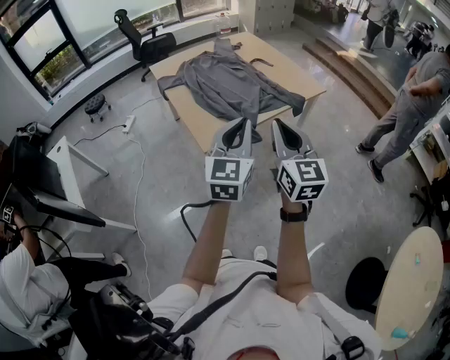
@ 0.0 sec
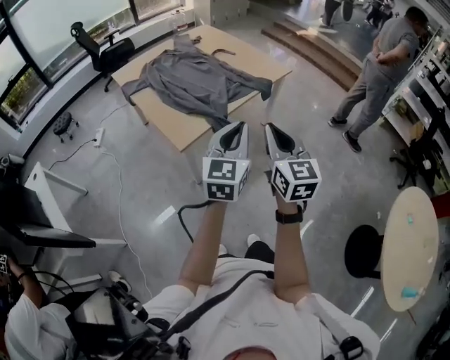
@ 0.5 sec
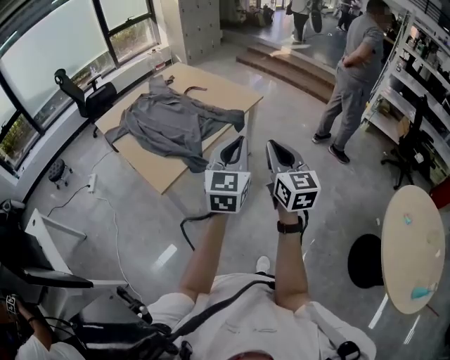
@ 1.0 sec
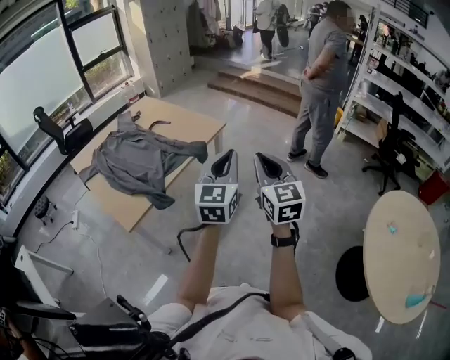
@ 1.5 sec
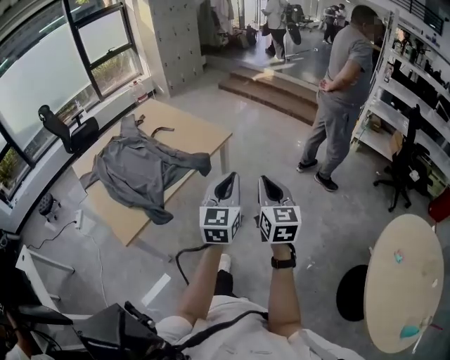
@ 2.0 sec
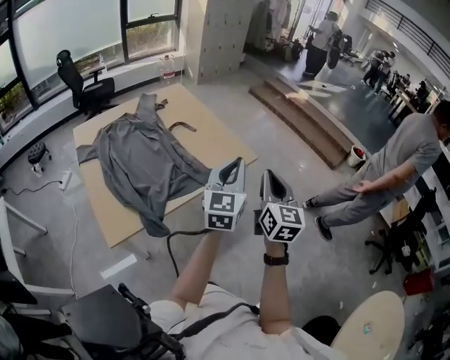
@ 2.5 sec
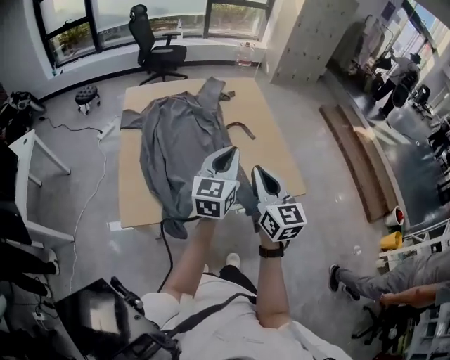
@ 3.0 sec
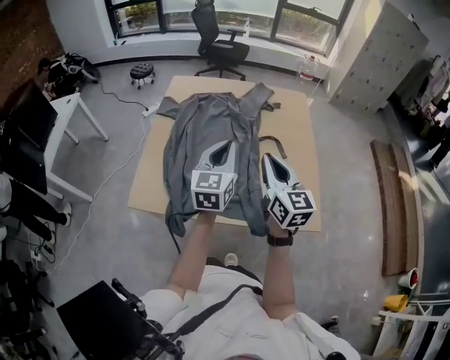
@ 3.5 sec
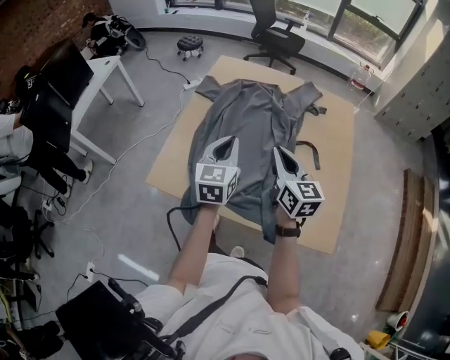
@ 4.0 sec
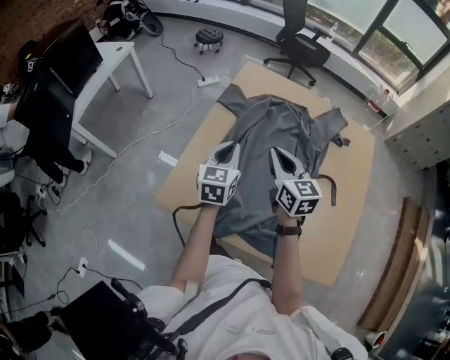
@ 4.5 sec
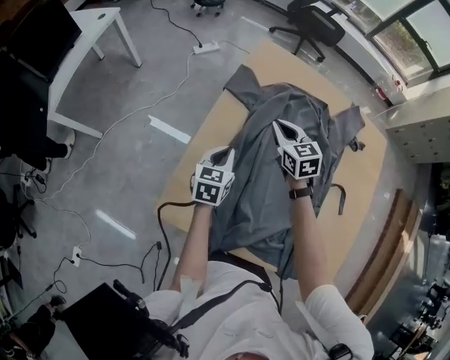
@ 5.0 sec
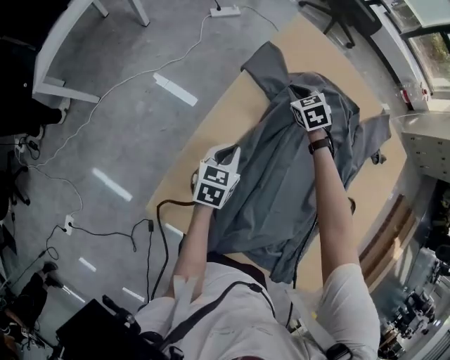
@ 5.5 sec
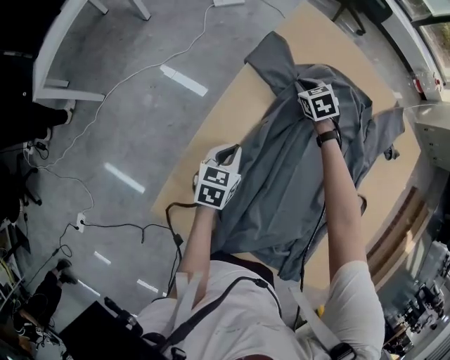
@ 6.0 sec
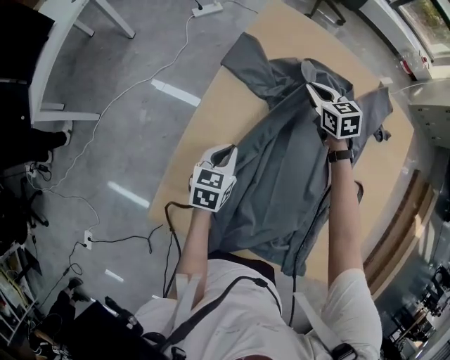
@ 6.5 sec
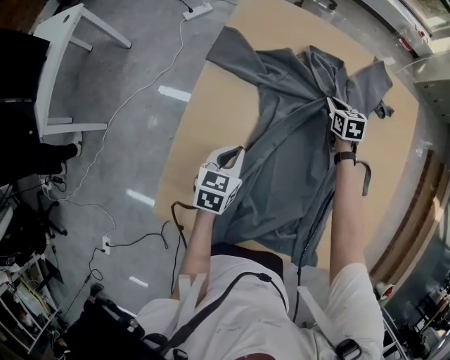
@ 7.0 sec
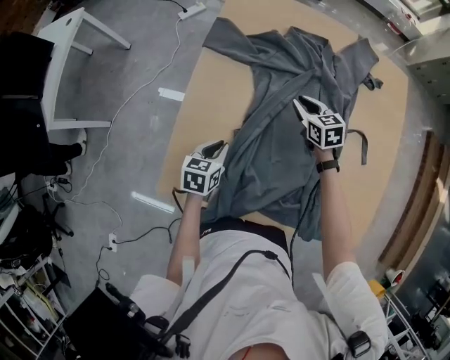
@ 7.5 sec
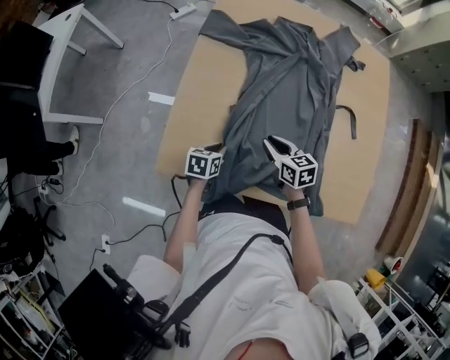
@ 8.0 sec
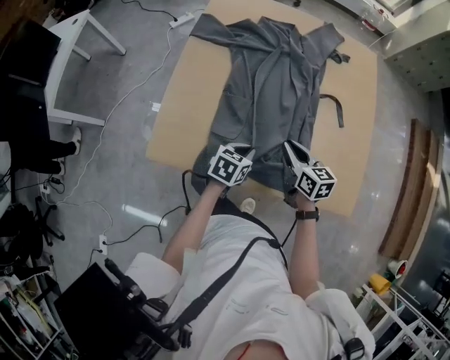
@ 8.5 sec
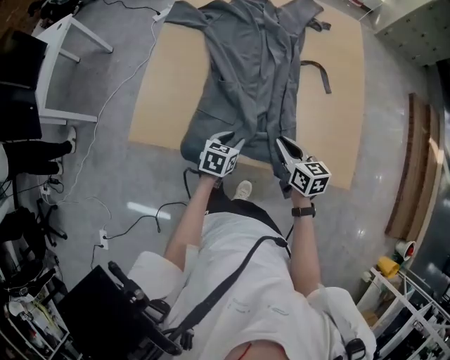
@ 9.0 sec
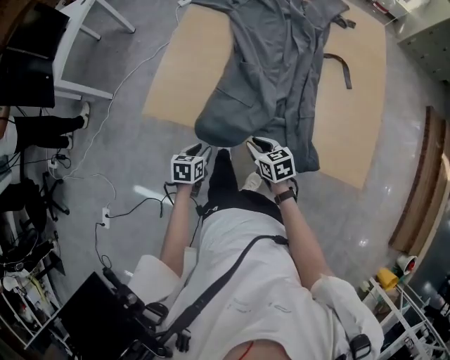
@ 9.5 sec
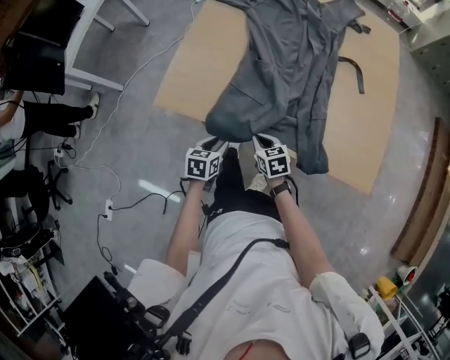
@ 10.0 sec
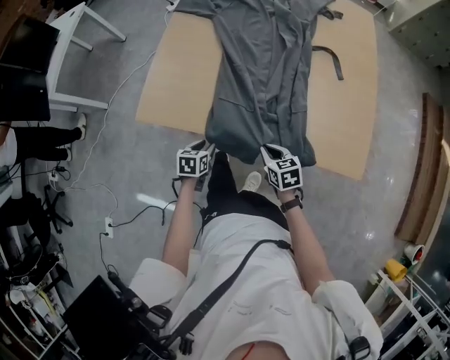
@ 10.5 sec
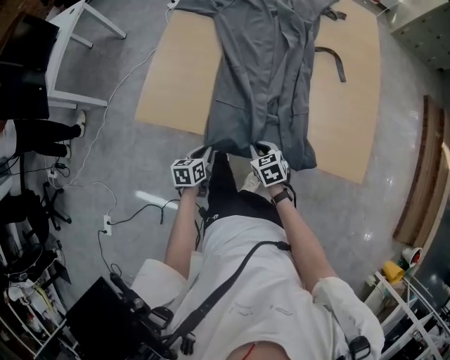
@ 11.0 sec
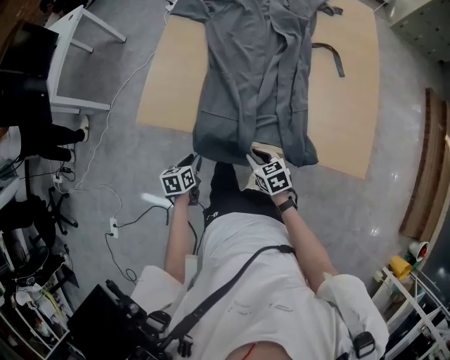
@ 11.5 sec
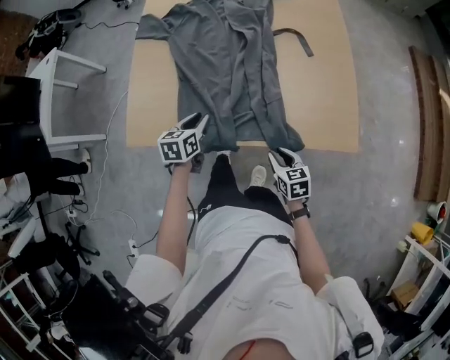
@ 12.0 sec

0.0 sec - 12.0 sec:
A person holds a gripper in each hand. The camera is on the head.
0.0 sec - 2.0 sec: The pair of grippers is taken to the right and forward, about 40 cm. The right gripper changes its angle by roughly 30 degrees.
2.0 sec - 4.0 sec: The pair of grippers is taken approximately 60 cm. The right gripper turns by some 80 degrees. Meanwhile the left gripper changes its angle by about 70 degrees.
4.0 sec - 6.0 sec: The right gripper travels forward and downward by some 60 cm, and tips its fingers downward by roughly 50 degrees; the left gripper goes about 40 cm downward, forward and to the left, and swivels some 40 degrees.
6.0 sec - 8.0 sec: The left gripper travels backward by approximately 20 cm; the right gripper shifts about 40 cm backward, and turns by approximately 50 degrees.
8.0 sec - 10.0 sec: The right gripper shifts by some 20 cm; the left gripper goes upward and returns, about 10 cm each way.
10.0 sec - 12.0 sec: The left gripper goes roughly 15 cm forward, to the right and upward, and closes, then opens again. The right gripper swings left and right, some 15 cm each way, with 2 reversals, and swivels some 20 degrees.

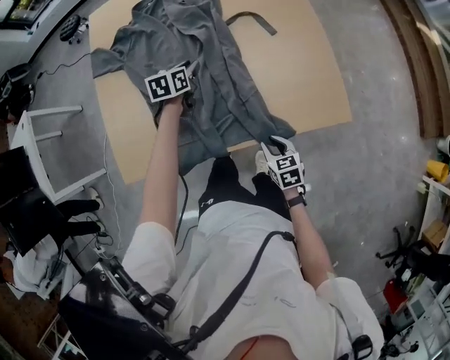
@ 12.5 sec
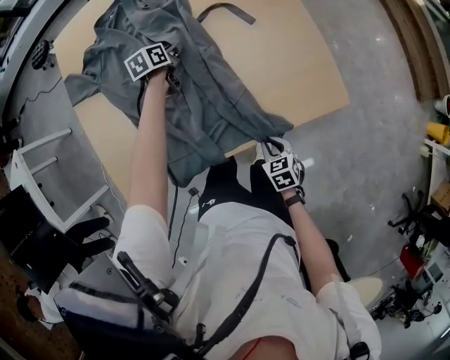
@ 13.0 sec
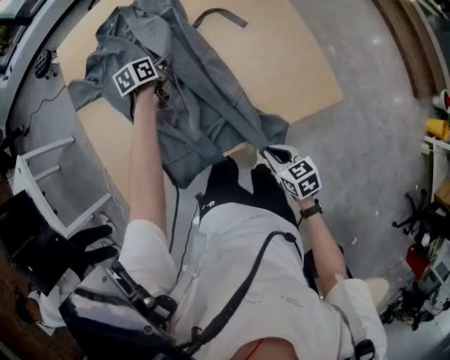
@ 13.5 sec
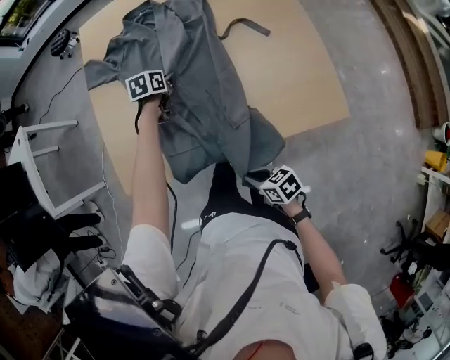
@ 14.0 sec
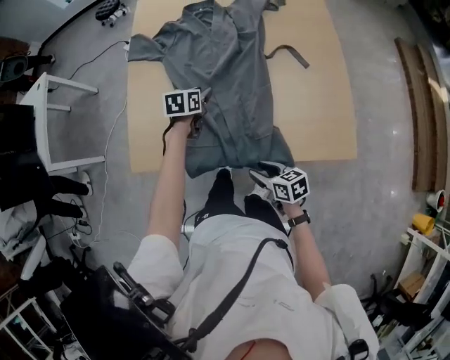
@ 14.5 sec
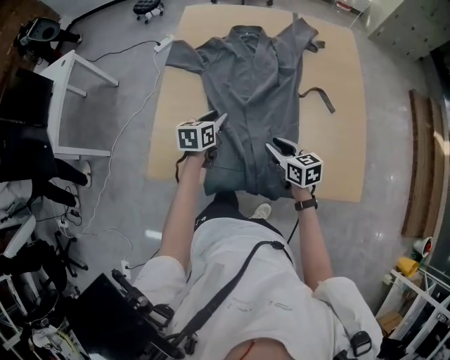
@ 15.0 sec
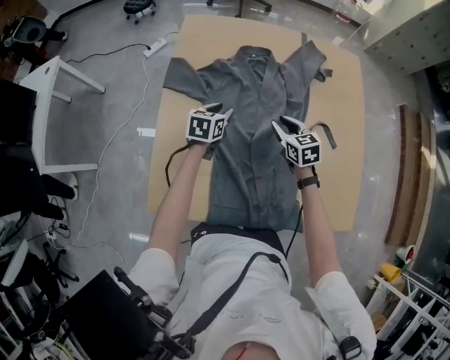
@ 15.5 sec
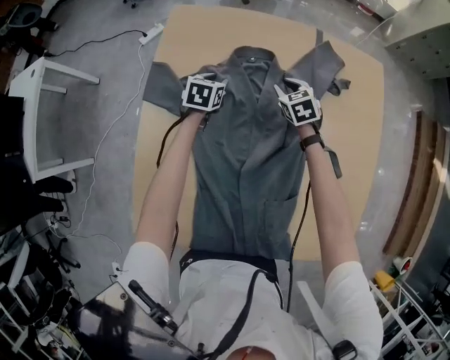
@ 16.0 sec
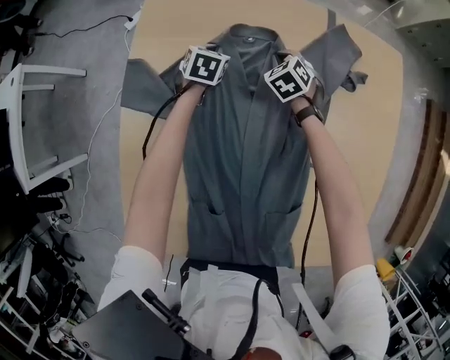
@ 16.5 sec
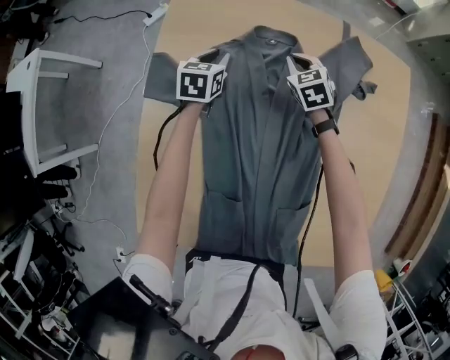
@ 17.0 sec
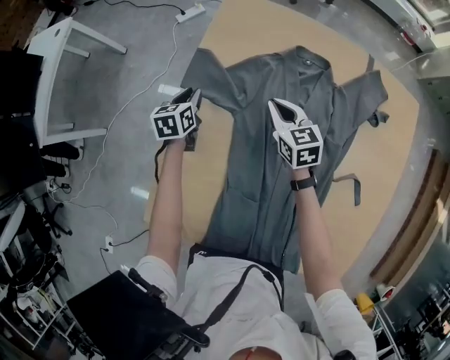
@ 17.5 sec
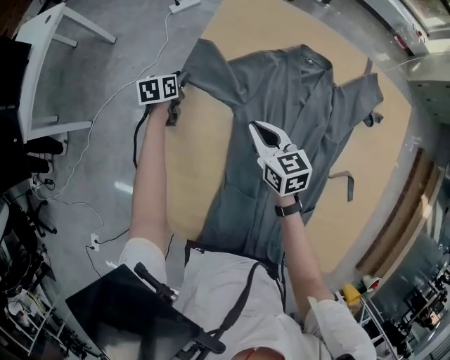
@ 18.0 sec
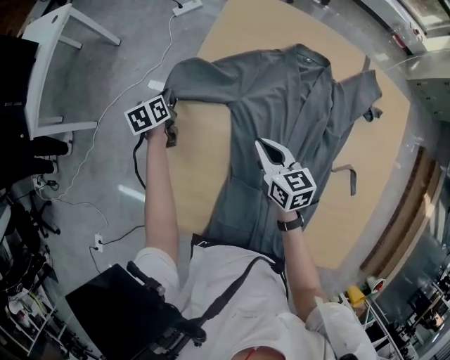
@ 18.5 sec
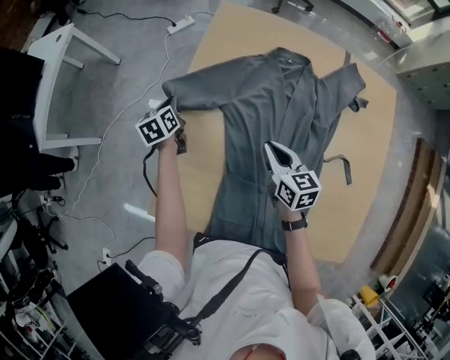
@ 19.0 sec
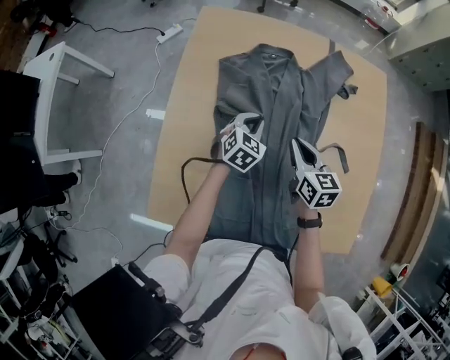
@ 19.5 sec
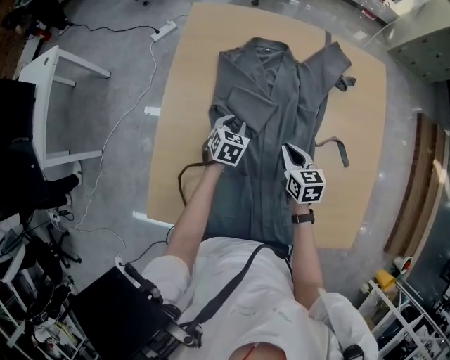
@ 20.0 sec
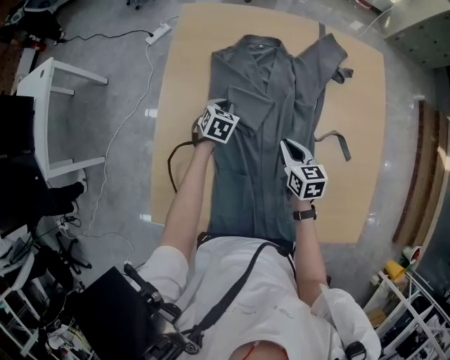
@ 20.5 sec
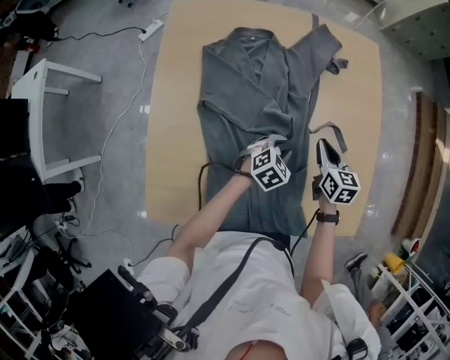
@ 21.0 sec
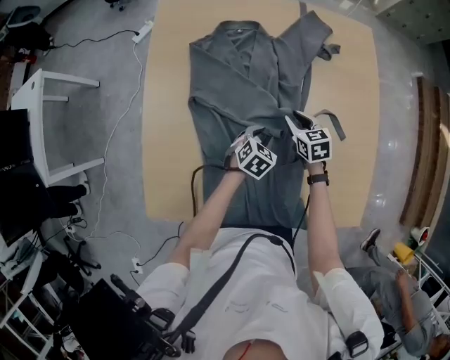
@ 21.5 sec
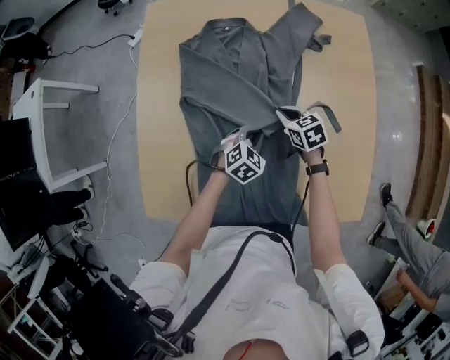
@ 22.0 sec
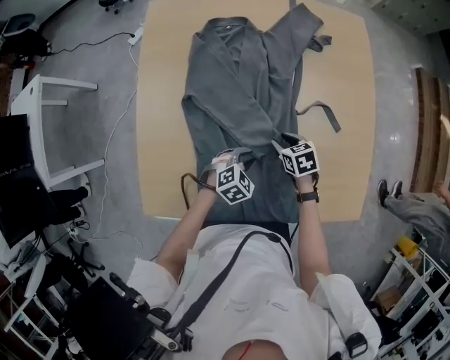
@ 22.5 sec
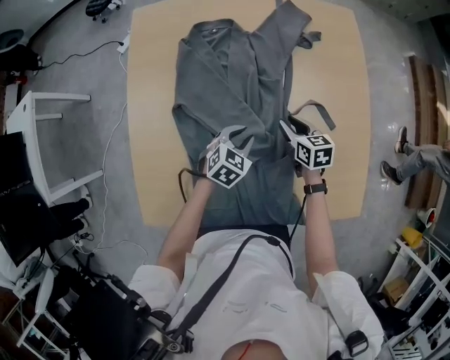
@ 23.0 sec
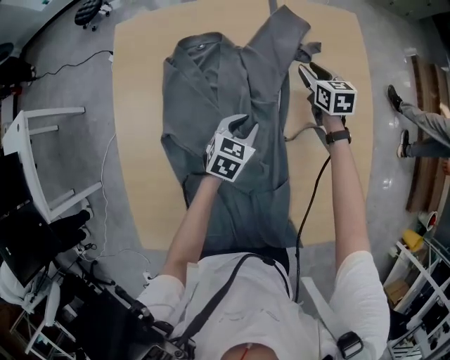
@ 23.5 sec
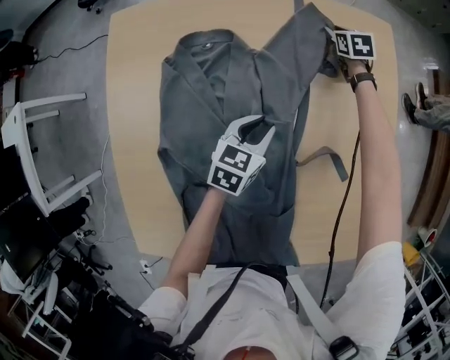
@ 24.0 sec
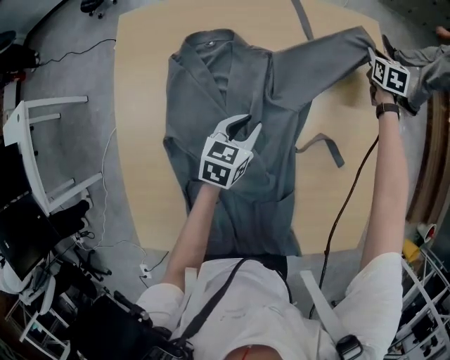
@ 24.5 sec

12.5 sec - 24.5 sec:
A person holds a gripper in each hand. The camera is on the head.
12.5 sec - 14.5 sec: The right gripper moves approximately 10 cm, and turns by about 30 degrees. The left gripper shifts by approximately 10 cm, and closes and opens again.
14.5 sec - 16.5 sec: Both grippers are carried forward, about 60 cm. The left gripper swivels approximately 20 degrees, and closes up, while the right gripper twists approximately 50 degrees counterclockwise, seen from behind.
16.5 sec - 18.5 sec: The left gripper goes up and down, roughly 10 cm each way, reversing 2 times, and rolls counterclockwise, seen from behind, by roughly 50 degrees. Meanwhile the right gripper moves roughly 35 cm, and changes its angle by roughly 50 degrees.
18.5 sec - 20.5 sec: The left gripper goes upward and returns, some 10 cm each way, and rolls clockwise, seen from behind, by about 50 degrees, while the right gripper moves roughly 5 cm upward and comes back, and turns by approximately 20 degrees.
20.5 sec - 22.5 sec: The right gripper moves some 10 cm, and changes its angle by approximately 20 degrees. Meanwhile the left gripper moves approximately 30 cm, and rotates approximately 40 degrees.
22.5 sec - 24.5 sec: The right gripper goes roughly 50 cm forward, and changes its angle by some 40 degrees; the left gripper moves forward, approximately 25 cm, and changes its angle by about 40 degrees.

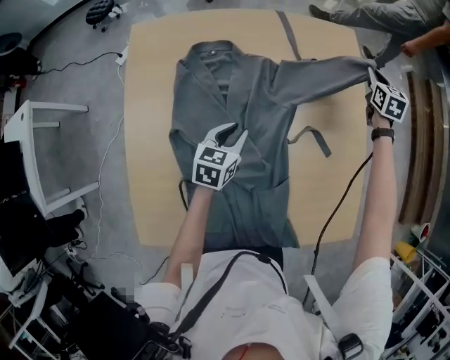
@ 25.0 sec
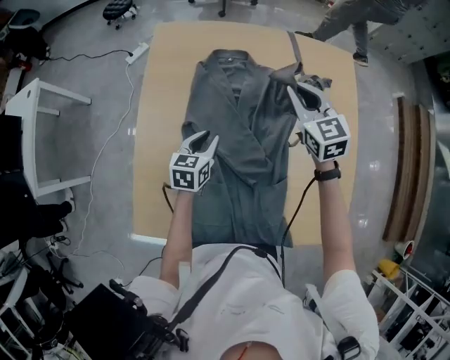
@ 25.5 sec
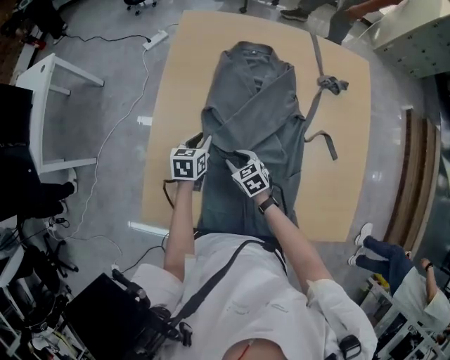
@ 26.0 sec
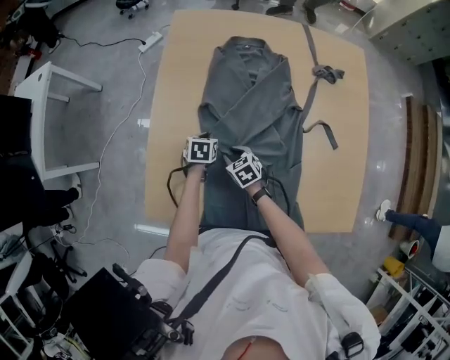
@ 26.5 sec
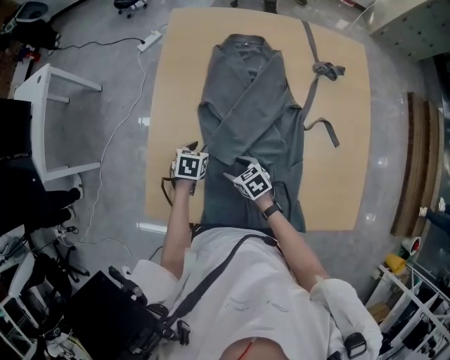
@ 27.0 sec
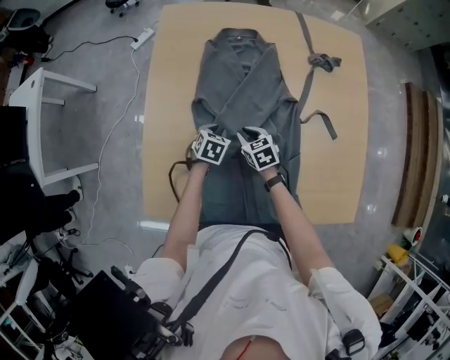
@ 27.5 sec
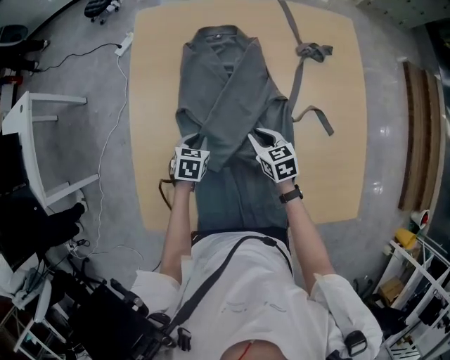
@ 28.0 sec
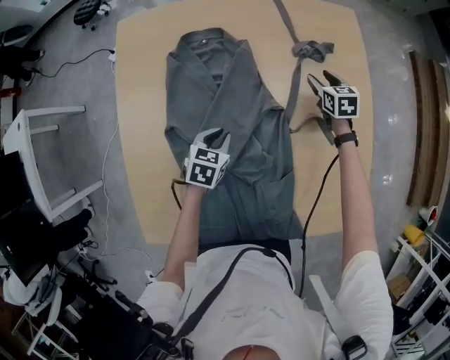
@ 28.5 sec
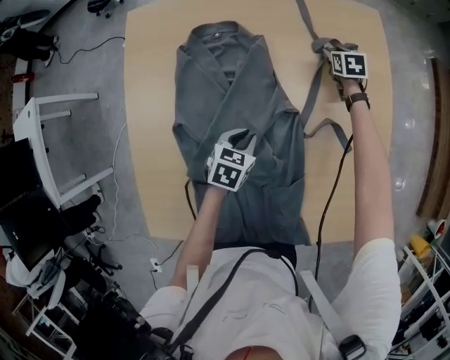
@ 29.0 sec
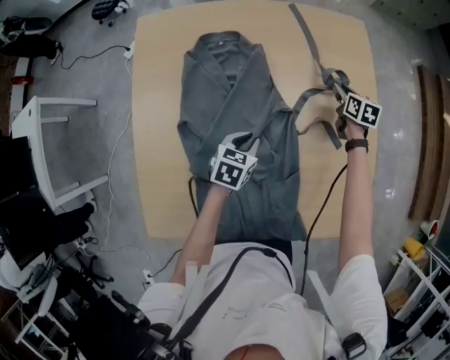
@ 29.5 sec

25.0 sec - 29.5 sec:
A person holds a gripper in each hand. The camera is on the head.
25.0 sec - 27.0 sec: The left gripper moves about 30 cm, and turns by approximately 30 degrees. The right gripper ends up about 70 cm from where it was, swivels roughly 60 degrees, and opens.
27.0 sec - 29.5 sec: The left gripper moves about 25 cm, and turns by about 20 degrees. The right gripper moves up and down over roughly 5 cm, changing direction 2 times, turns by some 50 degrees, and closes up.
